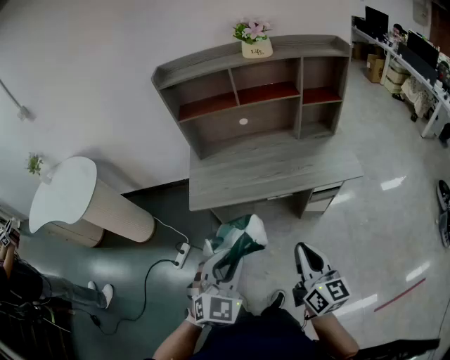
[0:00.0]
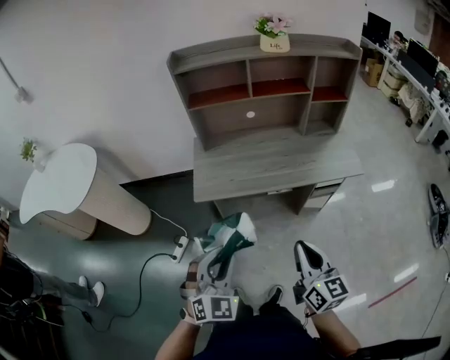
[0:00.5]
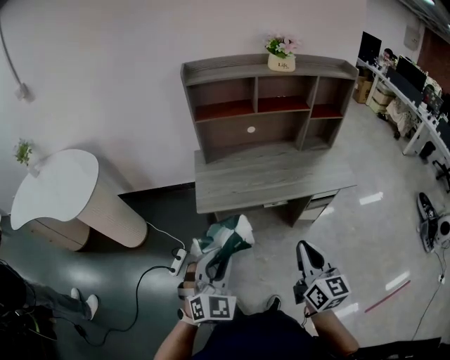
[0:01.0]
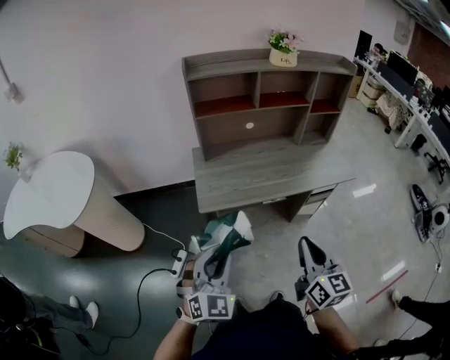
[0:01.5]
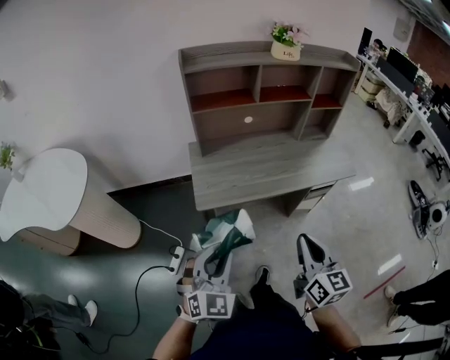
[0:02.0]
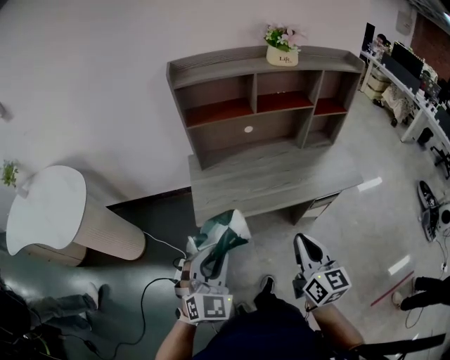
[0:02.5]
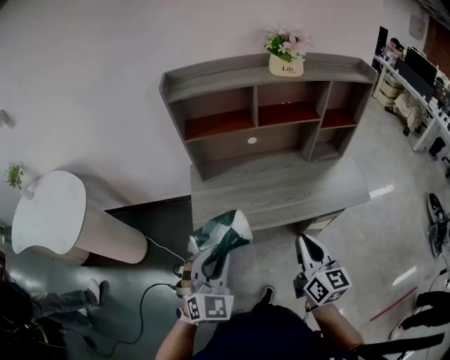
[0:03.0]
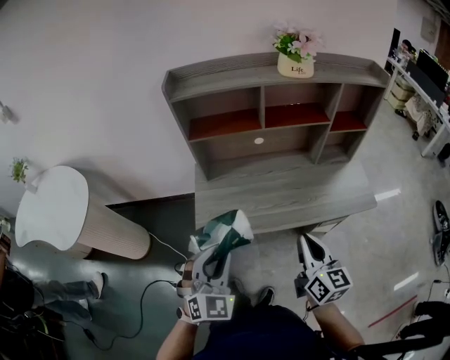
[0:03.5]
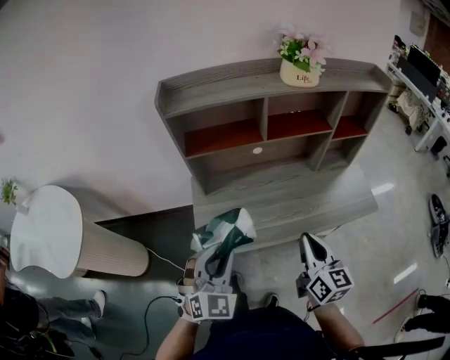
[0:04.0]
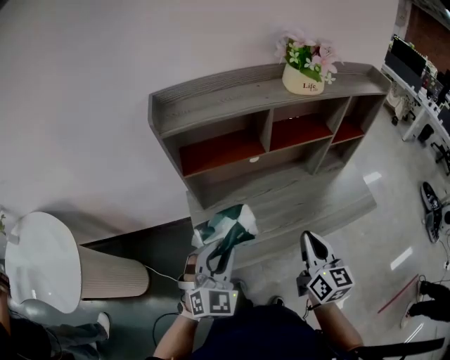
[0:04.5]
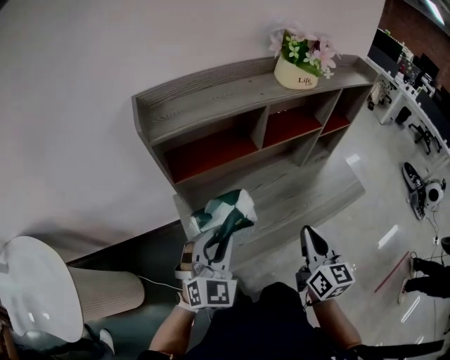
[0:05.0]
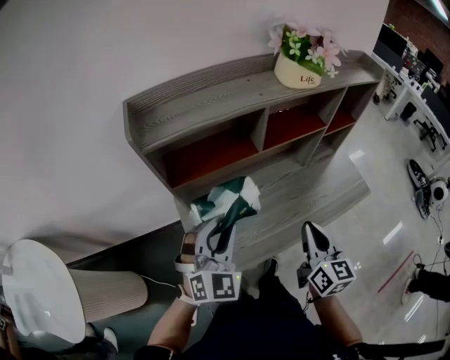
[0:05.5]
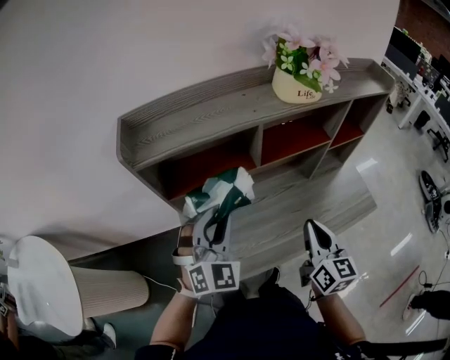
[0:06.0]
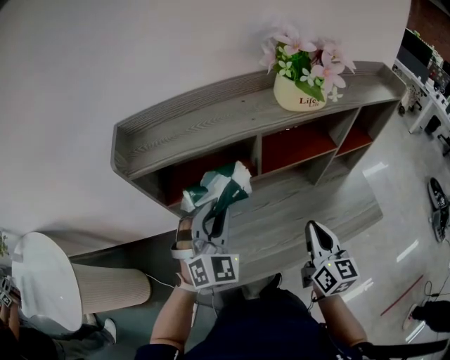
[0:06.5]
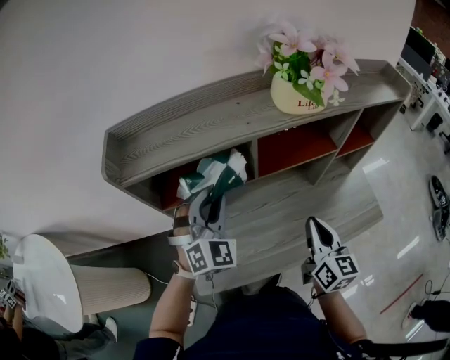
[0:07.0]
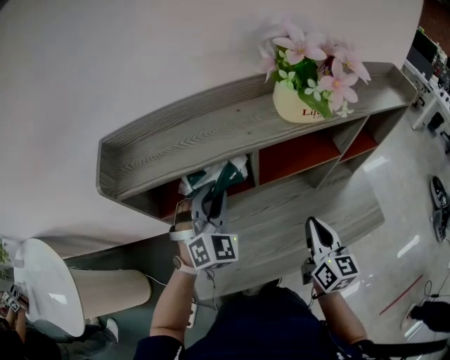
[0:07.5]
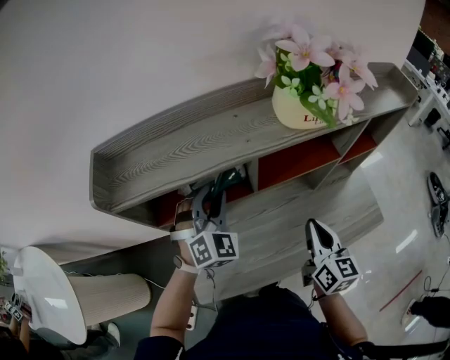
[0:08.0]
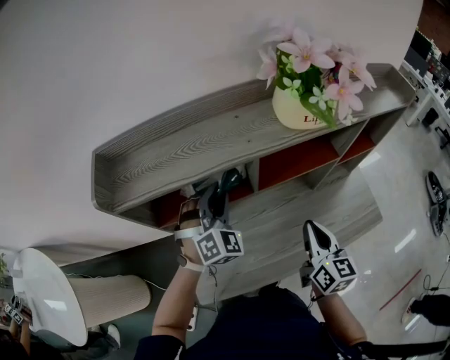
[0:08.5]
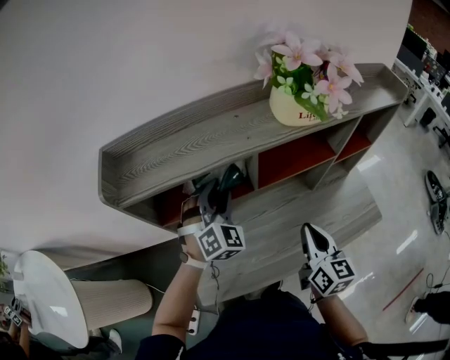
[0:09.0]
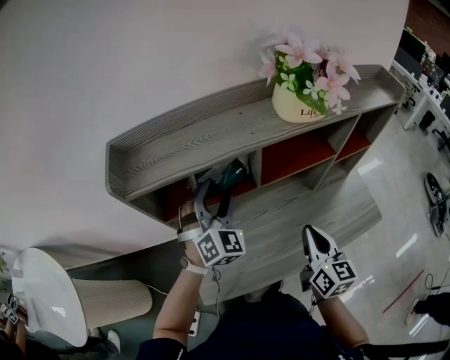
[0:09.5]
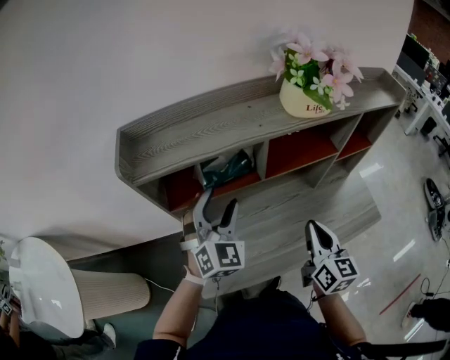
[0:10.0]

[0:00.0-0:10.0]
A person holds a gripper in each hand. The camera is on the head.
0:00.0 to 0:02.0: The two grippers go approximately 20 cm to the left.
0:02.0 to 0:04.0: The two grippers go approximately 25 cm forward.
0:04.0 to 0:06.0: The right gripper travels forward by about 15 cm, while the left gripper heads forward, covering some 25 cm.
0:06.0 to 0:08.0: The right gripper goes roughly 10 cm forward; the left gripper heads forward, covering some 15 cm.
0:08.0 to 0:10.0: The left gripper moves backward, about 10 cm, and opens, while the right gripper shifts approximately 5 cm backward.

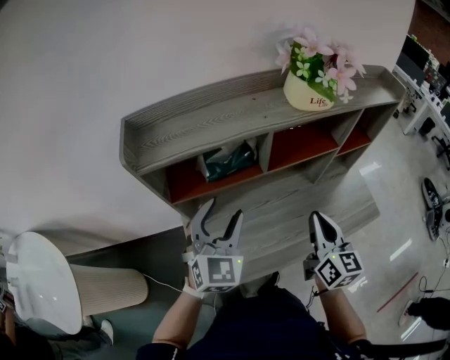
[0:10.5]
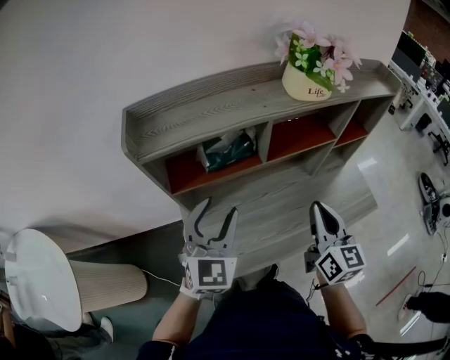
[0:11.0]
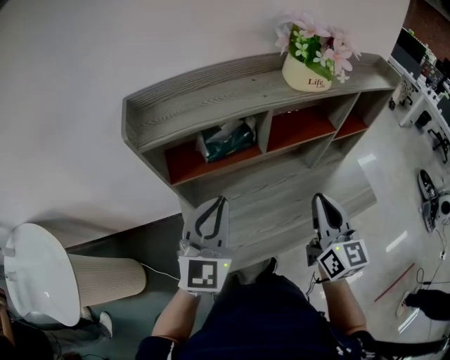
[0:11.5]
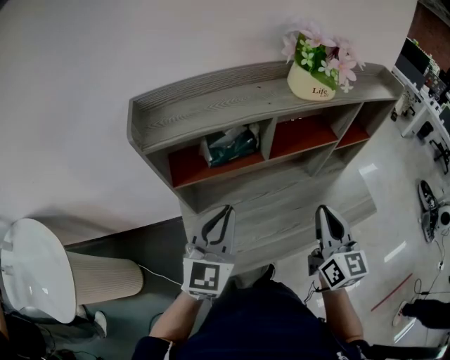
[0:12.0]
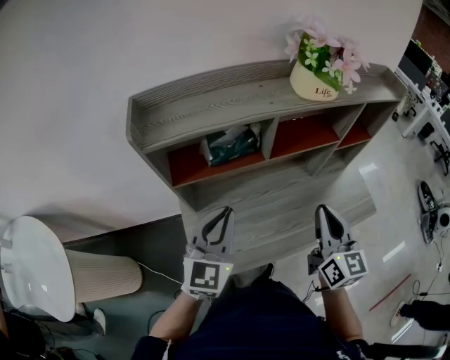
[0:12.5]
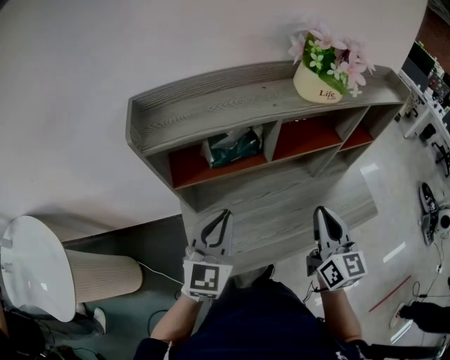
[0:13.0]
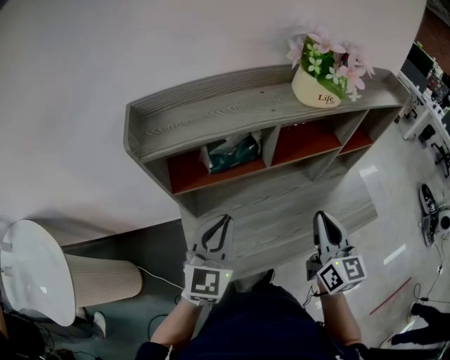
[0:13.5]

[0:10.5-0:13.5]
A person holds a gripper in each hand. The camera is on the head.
0:10.5 to 0:12.0: The left gripper heads backward, covering about 5 cm, changes its angle by roughly 20 degrees, and closes its fingers. Meanwhile the right gripper moves some 5 cm.
0:12.0 to 0:13.5: The grippers move only a little.

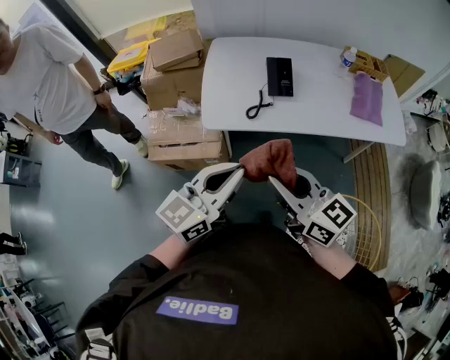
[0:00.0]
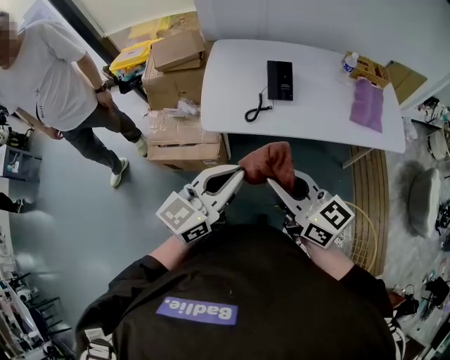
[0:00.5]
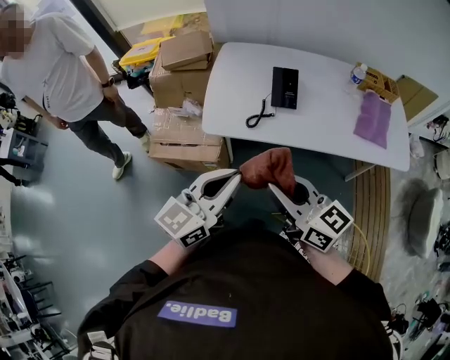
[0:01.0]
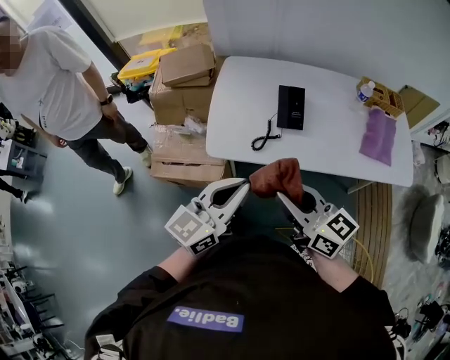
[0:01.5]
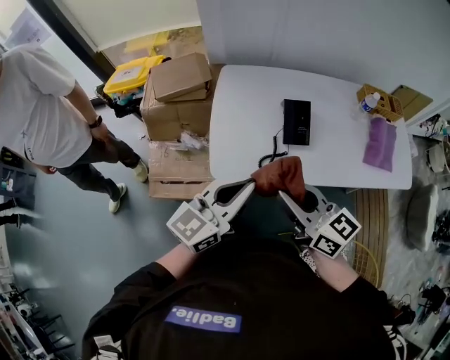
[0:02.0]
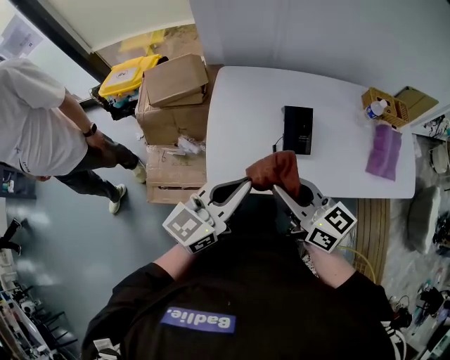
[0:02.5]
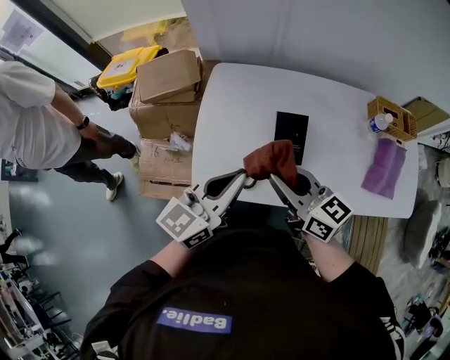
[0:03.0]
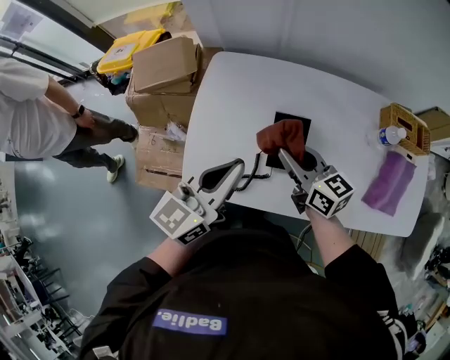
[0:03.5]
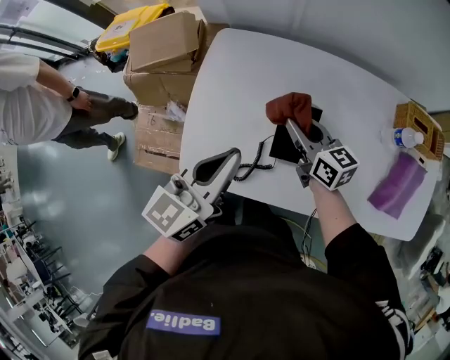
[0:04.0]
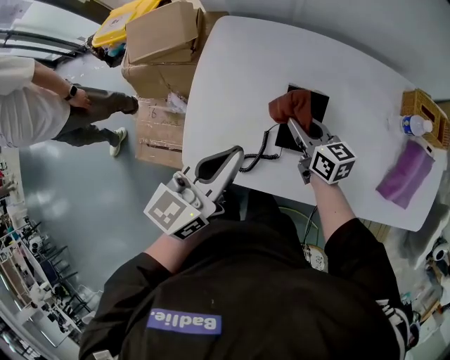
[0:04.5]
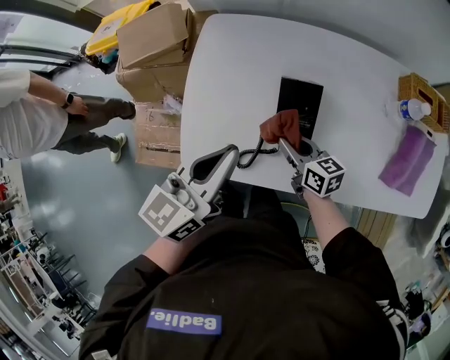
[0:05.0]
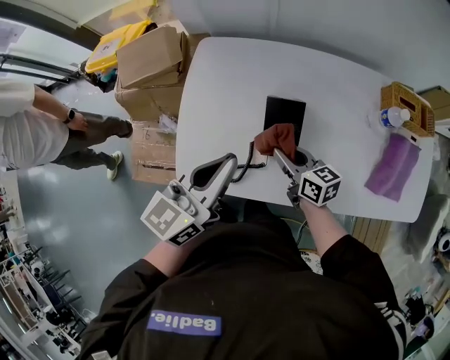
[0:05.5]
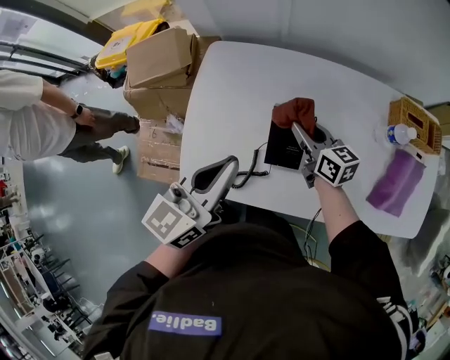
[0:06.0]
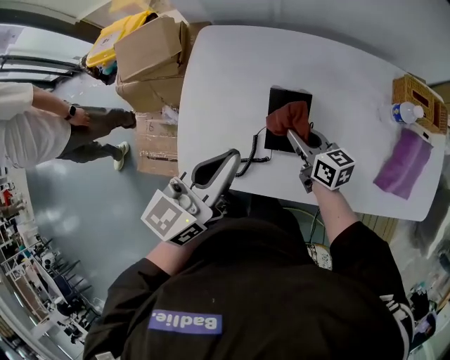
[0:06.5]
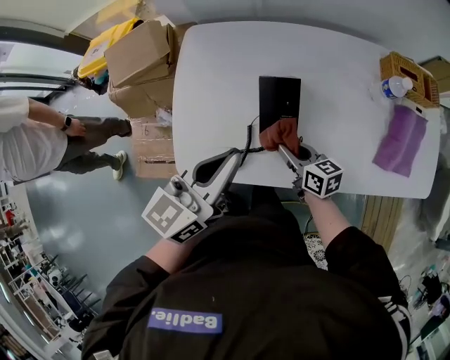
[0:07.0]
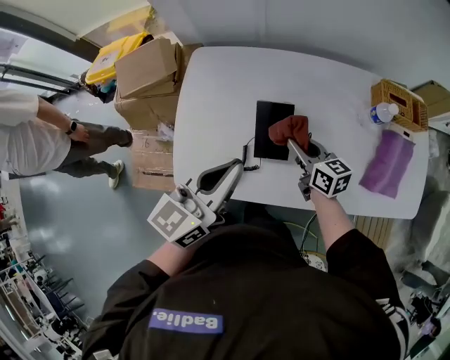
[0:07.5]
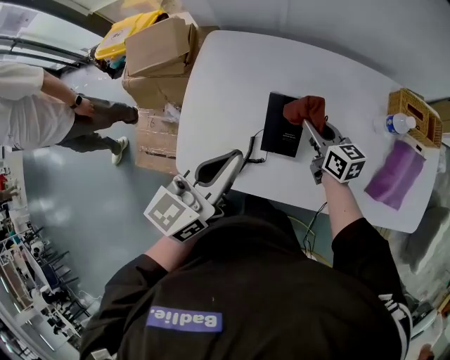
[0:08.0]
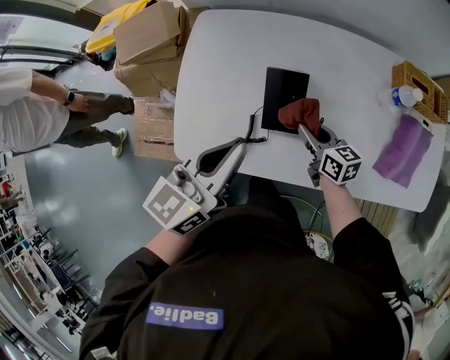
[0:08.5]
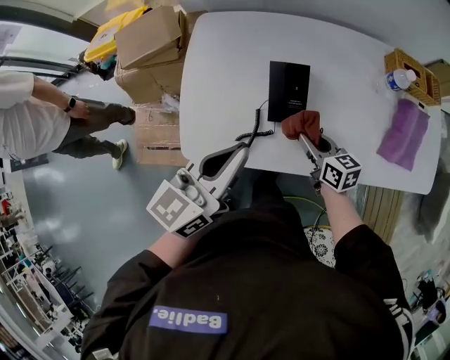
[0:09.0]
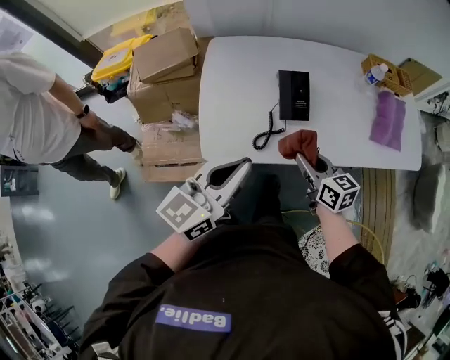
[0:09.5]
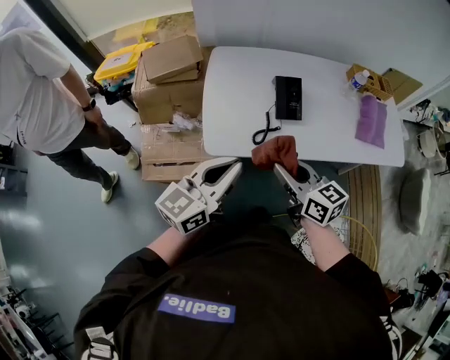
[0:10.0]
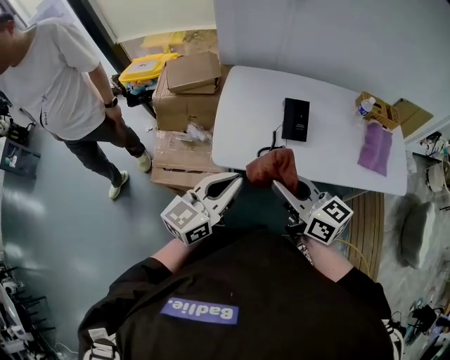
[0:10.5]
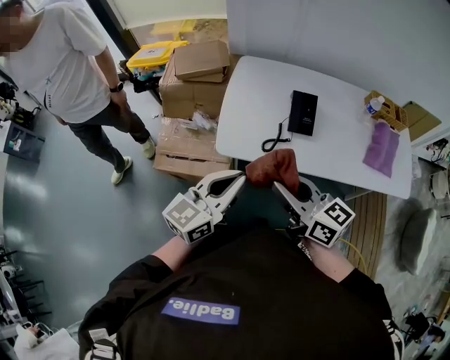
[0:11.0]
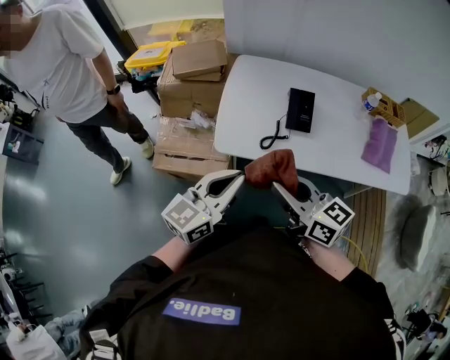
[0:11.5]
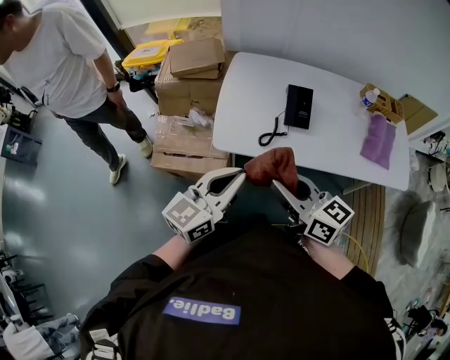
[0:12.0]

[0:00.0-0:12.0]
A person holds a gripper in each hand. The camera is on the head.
0:00.0 to 0:02.0: The two grippers go approximately 20 cm forward.
0:02.0 to 0:04.0: The left gripper is displaced forward and to the right by roughly 20 cm, and changes its angle by about 20 degrees; the right gripper heads forward, downward and to the right, covering approximately 40 cm.
0:04.0 to 0:06.0: The right gripper reaches approximately 10 cm backward, then returns.
0:06.0 to 0:08.0: The right gripper goes backward and returns, roughly 15 cm each way.
0:08.0 to 0:10.0: The right gripper moves backward, to the left and upward, some 40 cm. The left gripper is displaced backward and to the left by roughly 25 cm.
0:10.0 to 0:12.0: The right gripper travels upward and backward by about 10 cm; the left gripper travels backward by some 5 cm.

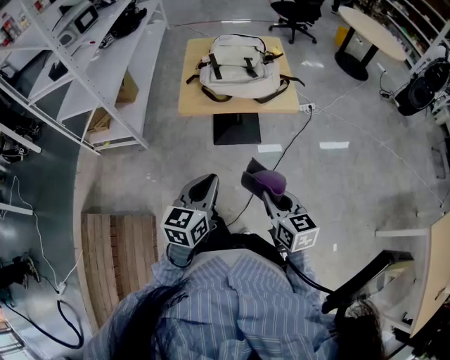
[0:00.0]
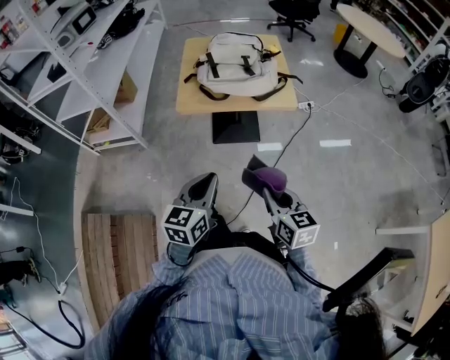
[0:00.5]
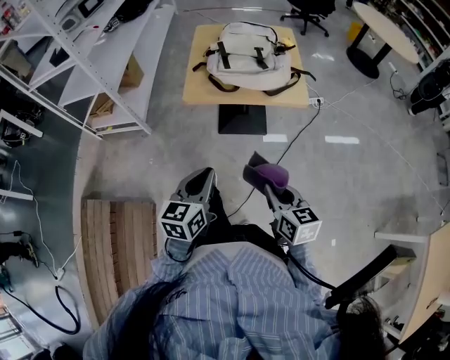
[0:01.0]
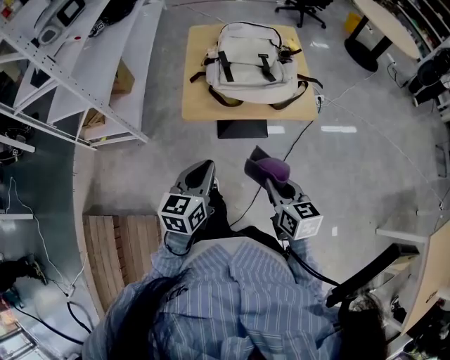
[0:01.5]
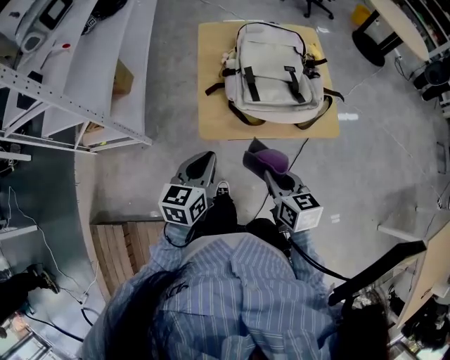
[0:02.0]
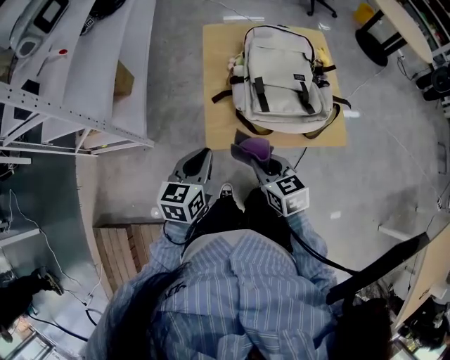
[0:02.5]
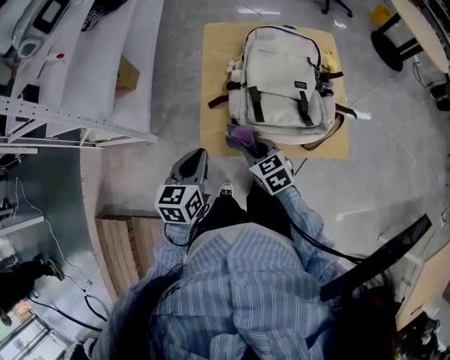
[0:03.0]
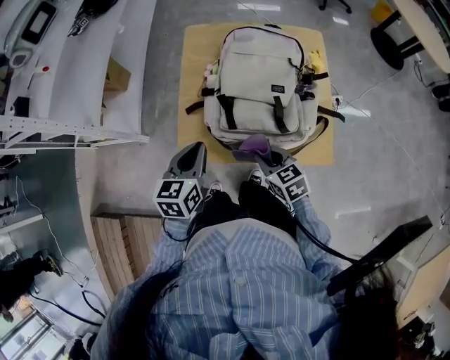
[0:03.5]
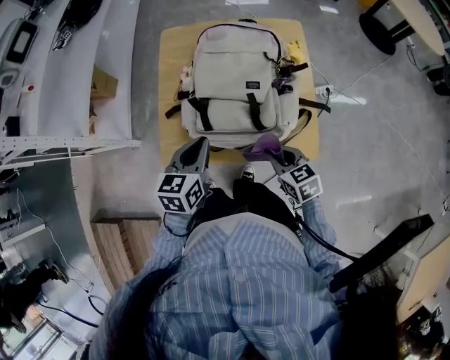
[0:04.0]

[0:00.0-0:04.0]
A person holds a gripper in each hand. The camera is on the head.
0:00.0 to 0:02.0: The two grippers go roughly 35 cm forward and to the left.
0:02.0 to 0:04.0: The grippers both shift to the right and forward by some 25 cm. The right gripper swivels approximately 20 degrees.
